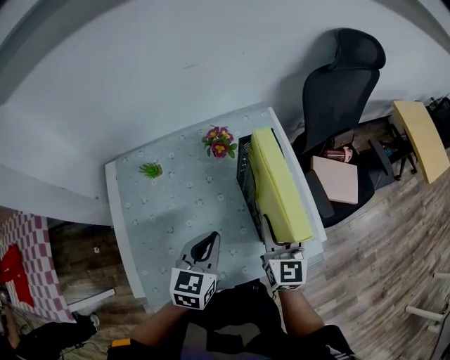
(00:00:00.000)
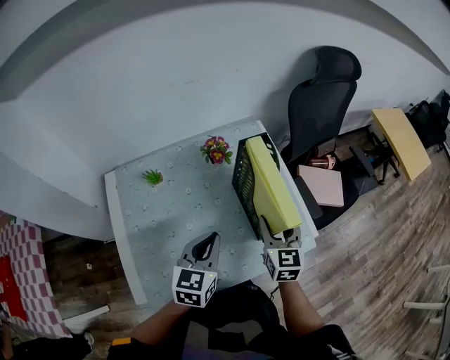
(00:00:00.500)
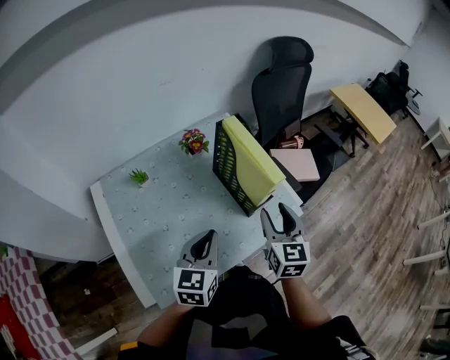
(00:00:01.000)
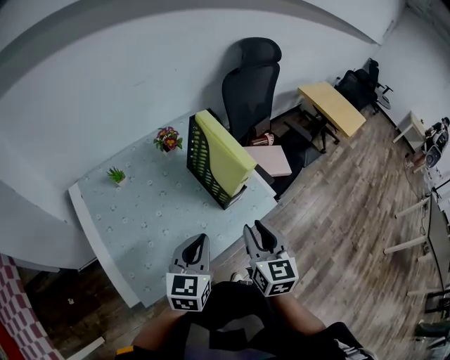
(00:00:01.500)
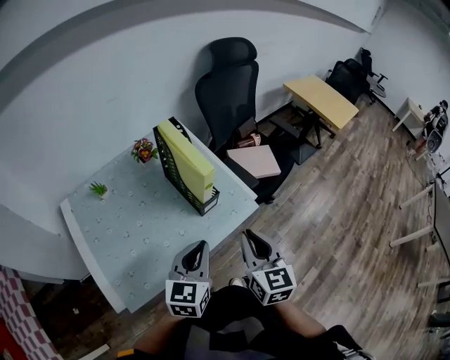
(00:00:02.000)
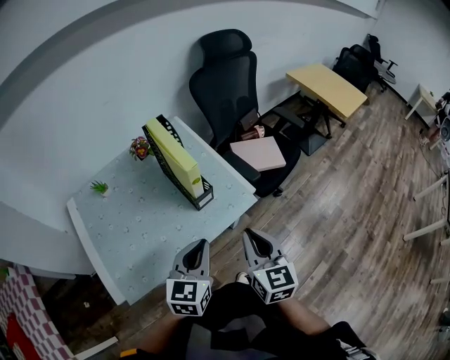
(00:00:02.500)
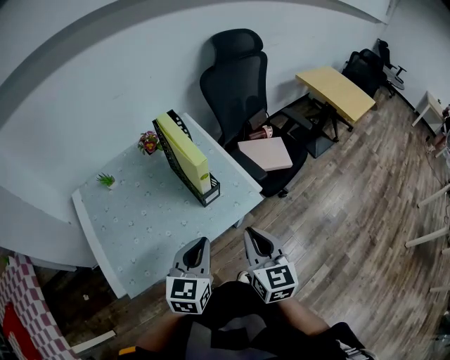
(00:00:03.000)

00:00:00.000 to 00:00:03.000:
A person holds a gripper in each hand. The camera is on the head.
00:00:00.000 to 00:00:01.500: The grippers both shift backward by approximately 20 cm. The left gripper swivels about 20 degrees.
00:00:01.500 to 00:00:03.000: The two grippers go some 15 cm to the right. The right gripper closes.

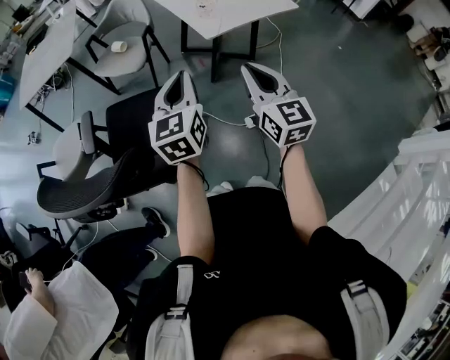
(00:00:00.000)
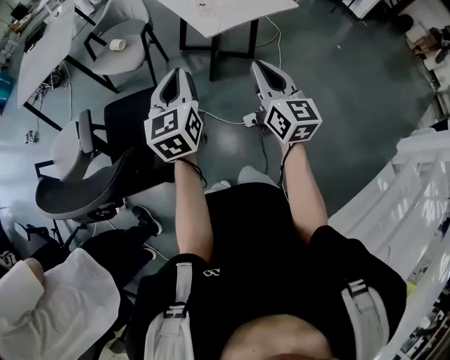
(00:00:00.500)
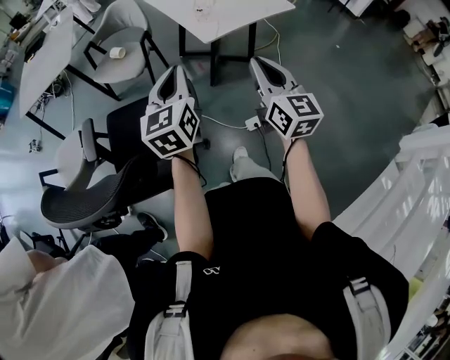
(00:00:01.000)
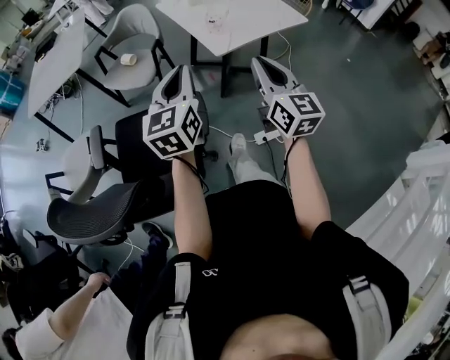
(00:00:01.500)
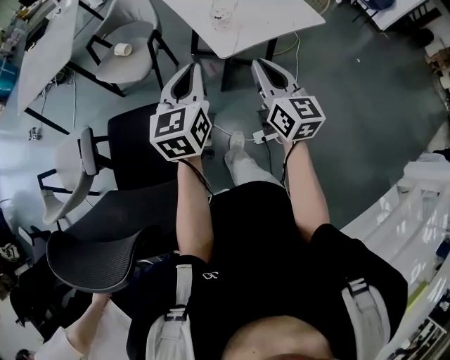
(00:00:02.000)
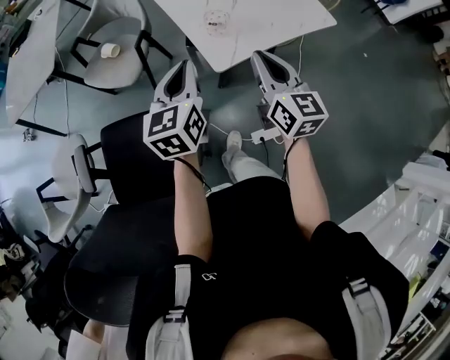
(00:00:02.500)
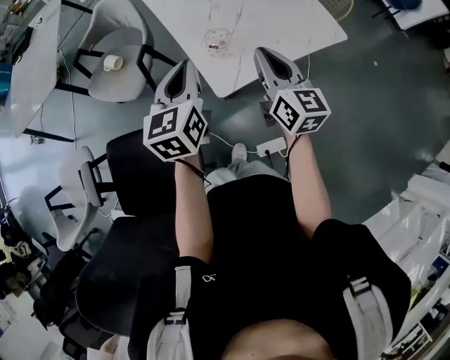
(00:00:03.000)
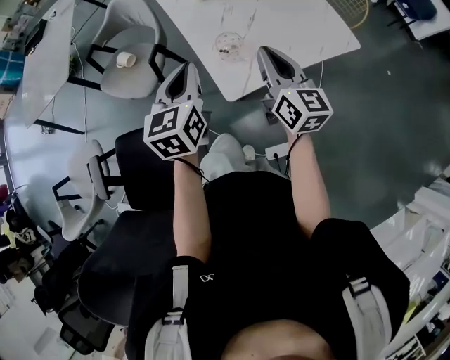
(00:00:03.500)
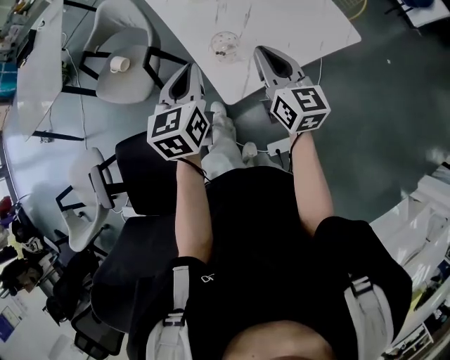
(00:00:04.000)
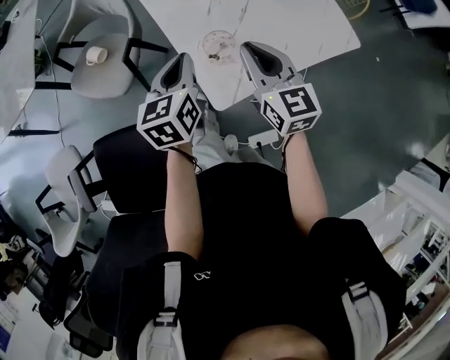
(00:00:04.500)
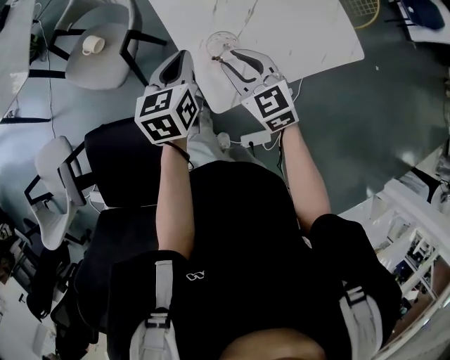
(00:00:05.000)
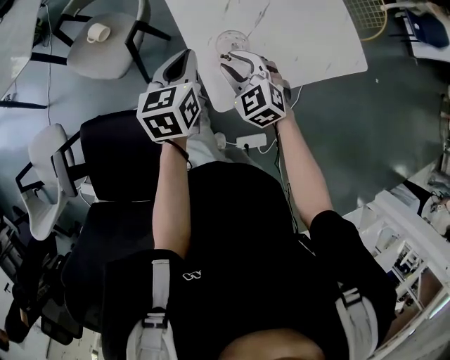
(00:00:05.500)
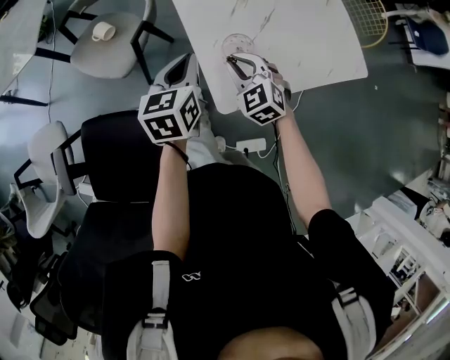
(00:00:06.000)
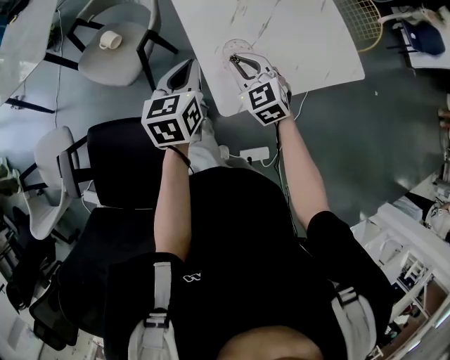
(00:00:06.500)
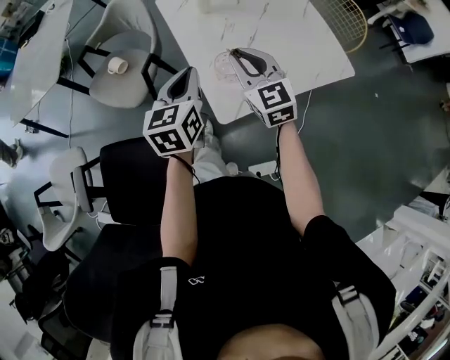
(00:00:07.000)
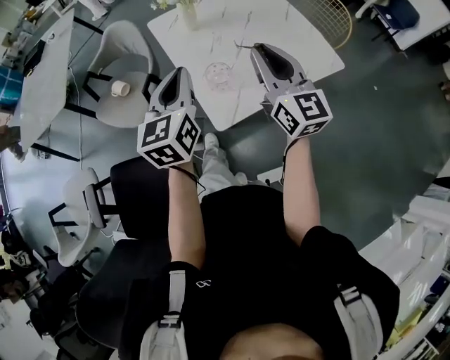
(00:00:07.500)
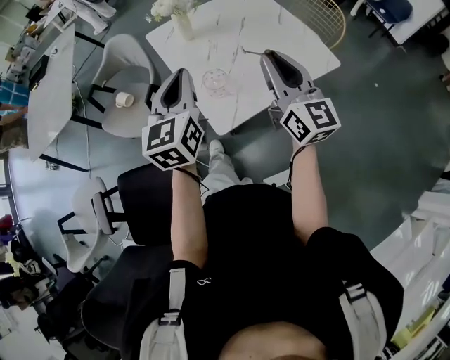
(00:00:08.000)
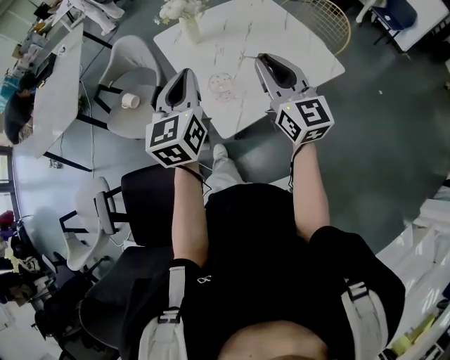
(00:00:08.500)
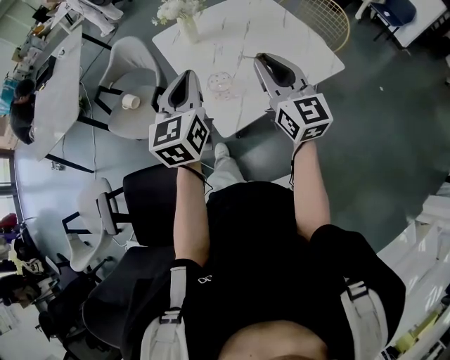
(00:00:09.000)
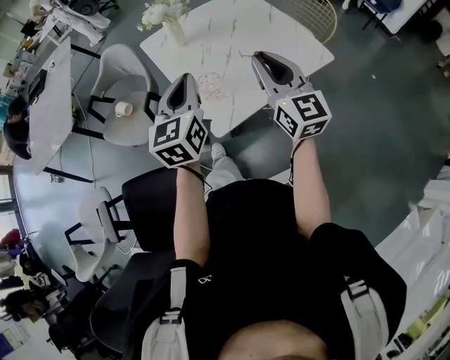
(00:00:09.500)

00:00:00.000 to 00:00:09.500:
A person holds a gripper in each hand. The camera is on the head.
00:00:00.000 to 00:00:02.000: The two grippers go some 20 cm forward.
00:00:02.000 to 00:00:04.000: Both grippers move forward, some 30 cm.
00:00:04.000 to 00:00:05.500: The right gripper shifts some 20 cm downward and to the left, tips its fingers downward by roughly 30 degrees, and opens its fingers, while the left gripper heads downward and forward, covering some 10 cm.
00:00:05.500 to 00:00:07.500: The right gripper shifts roughly 25 cm upward, and tilts its fingers roughly 40 degrees upward. Meanwhile the left gripper goes about 15 cm upward, and changes its angle by about 20 degrees.
00:00:07.500 to 00:00:09.500: The right gripper ends up approximately 5 cm from where it was.

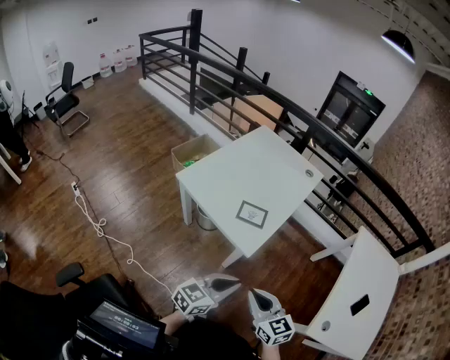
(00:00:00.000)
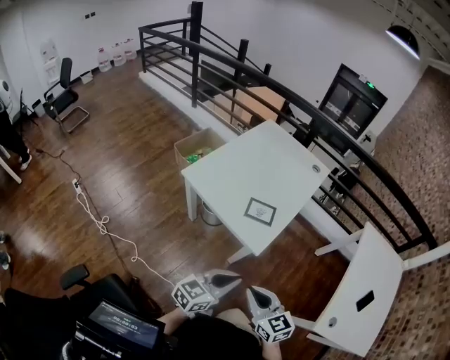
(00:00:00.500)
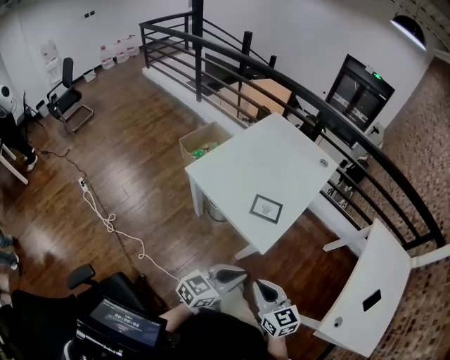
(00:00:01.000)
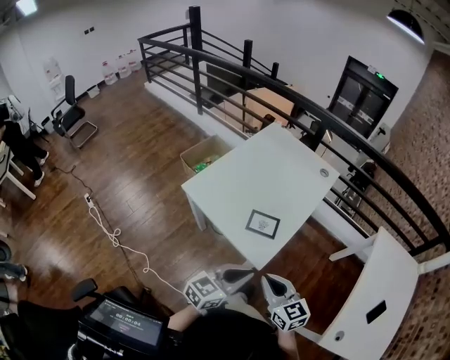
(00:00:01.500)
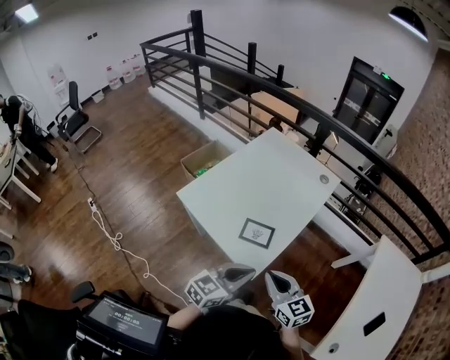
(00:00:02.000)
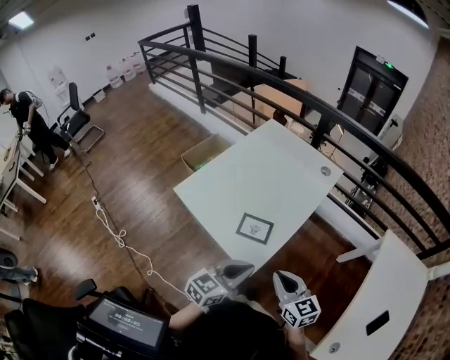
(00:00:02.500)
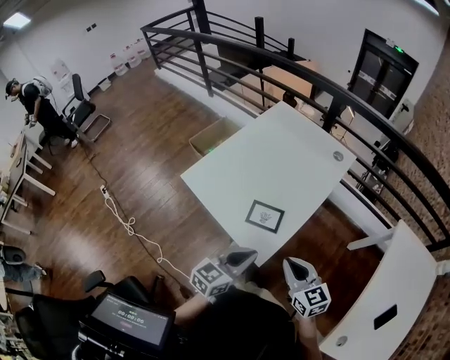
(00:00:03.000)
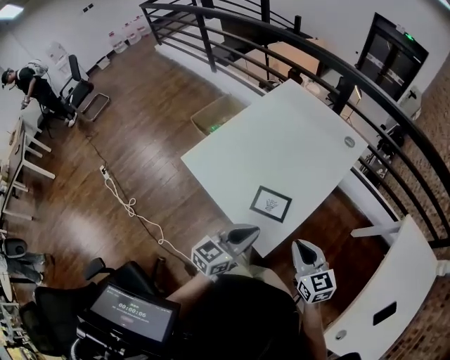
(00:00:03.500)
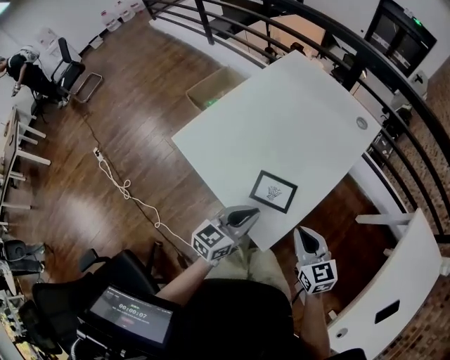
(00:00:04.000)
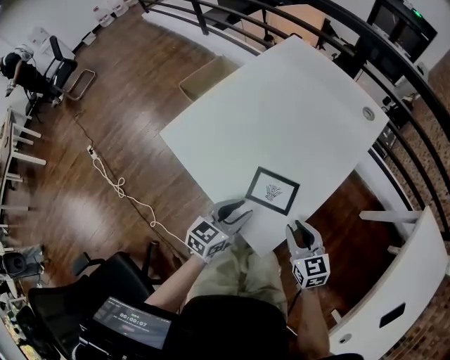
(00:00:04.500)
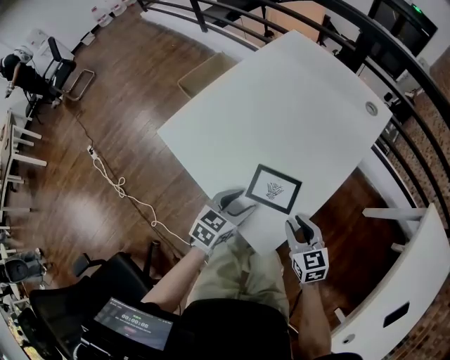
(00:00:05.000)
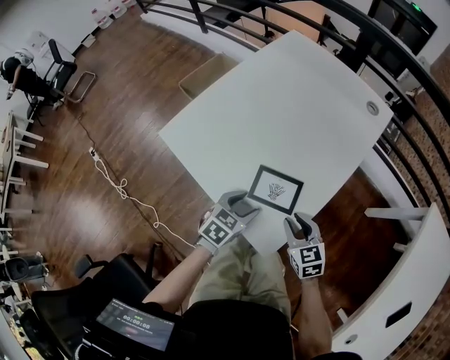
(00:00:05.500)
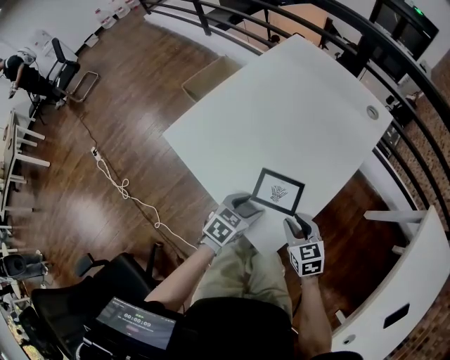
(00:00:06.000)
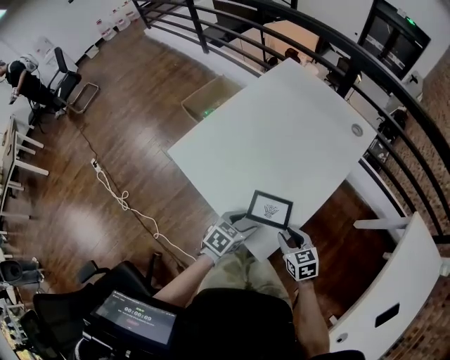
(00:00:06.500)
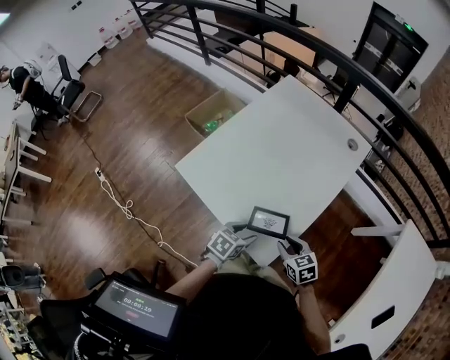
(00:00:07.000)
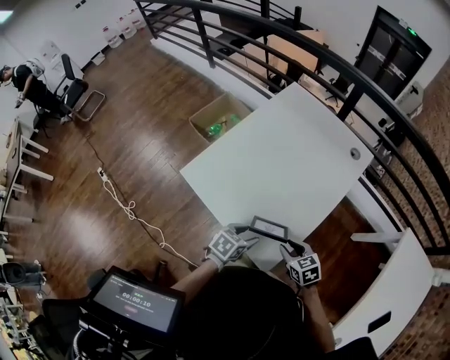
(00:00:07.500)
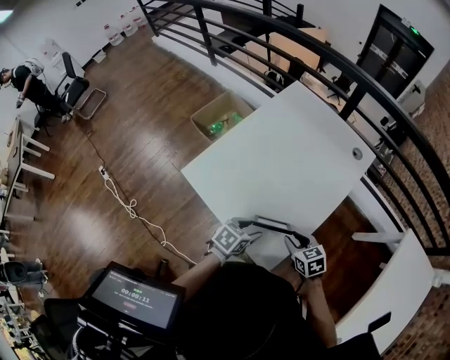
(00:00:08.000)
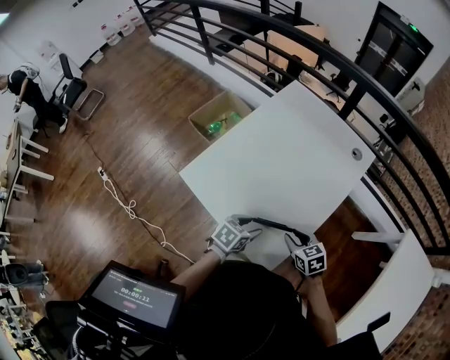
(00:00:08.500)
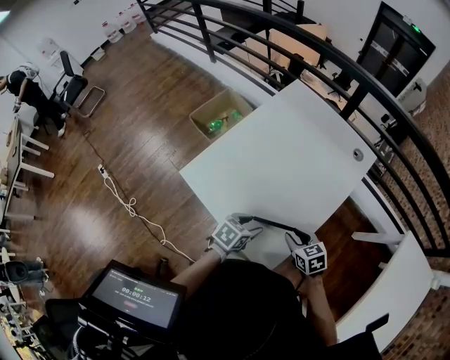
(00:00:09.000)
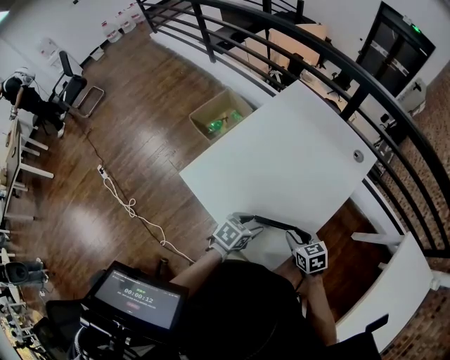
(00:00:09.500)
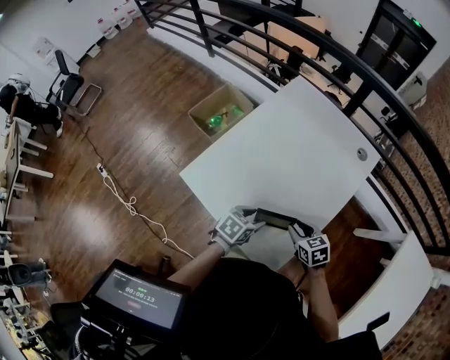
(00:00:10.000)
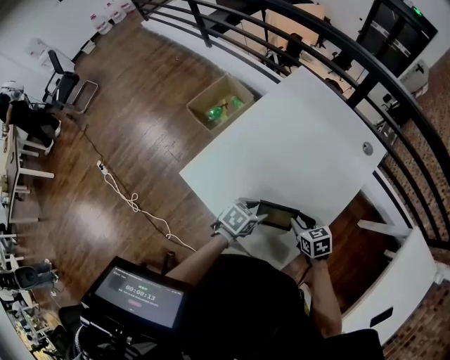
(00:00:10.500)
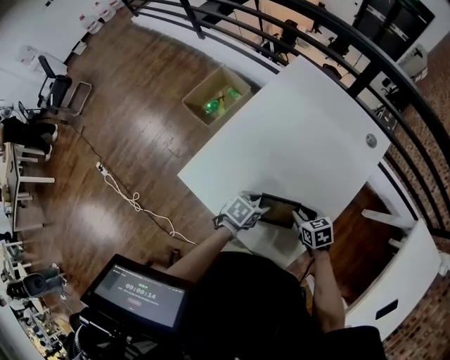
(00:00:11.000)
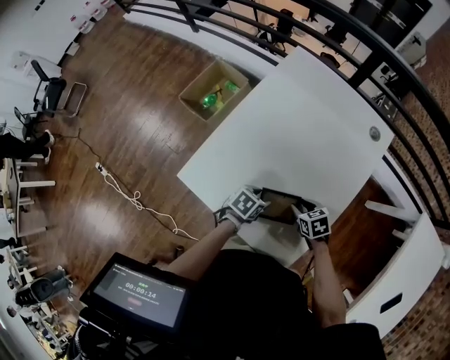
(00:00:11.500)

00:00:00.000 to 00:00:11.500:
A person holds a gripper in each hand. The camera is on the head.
00:00:00.000 to 00:00:02.000: Both grippers move forward, roughly 20 cm.
00:00:02.000 to 00:00:04.000: Both grippers travel together downward and forward, some 20 cm.
00:00:04.000 to 00:00:06.000: Both grippers move downward, some 15 cm. The left gripper turns by about 30 degrees, and opens. The right gripper opens.
00:00:06.000 to 00:00:07.500: Both grippers travel together upward, approximately 10 cm.
00:00:07.500 to 00:00:09.500: Both grippers travel together forward, some 5 cm.
00:00:09.500 to 00:00:11.500: Both grippers move downward, approximately 10 cm.

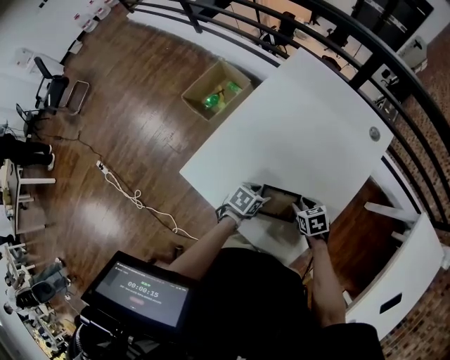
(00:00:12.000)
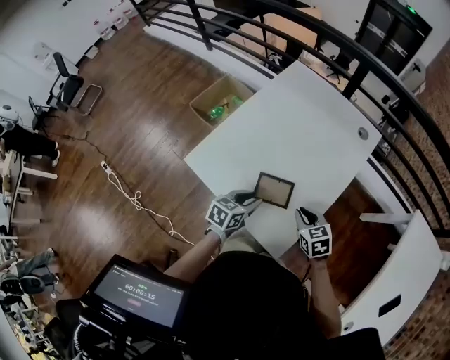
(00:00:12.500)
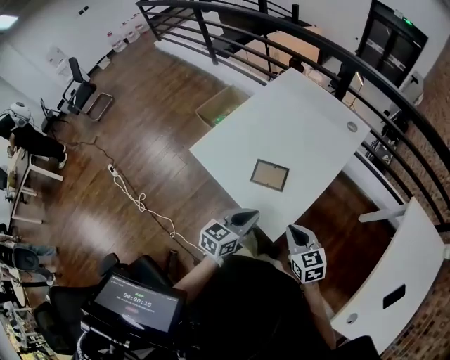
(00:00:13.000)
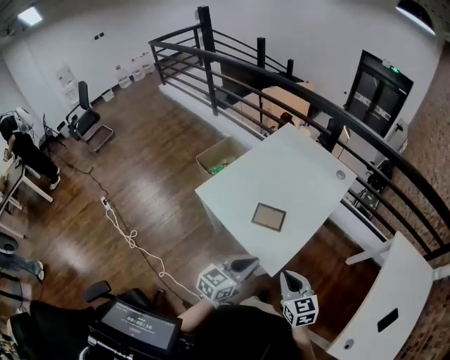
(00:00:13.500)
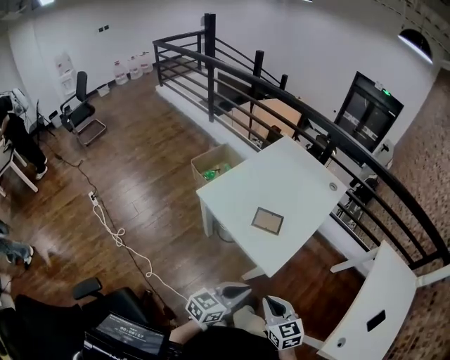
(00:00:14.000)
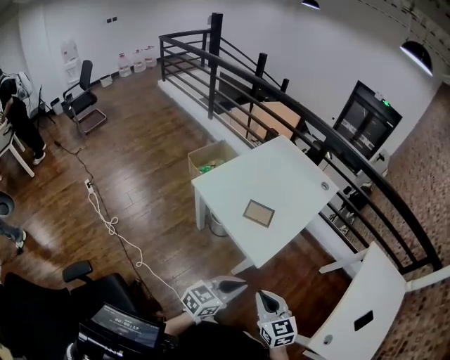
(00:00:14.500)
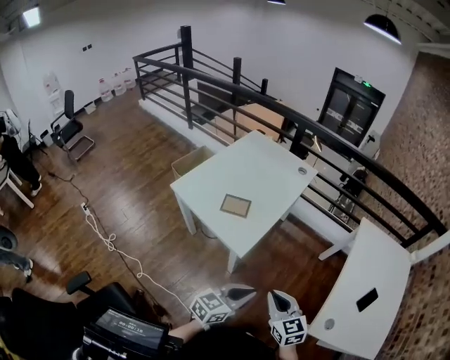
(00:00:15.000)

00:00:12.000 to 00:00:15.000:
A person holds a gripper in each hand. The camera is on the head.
00:00:12.000 to 00:00:13.500: Both grippers travel together backward and upward, some 40 cm. The right gripper tilts its fingers approximately 40 degrees upward, and closes. The left gripper angles its fingers upward, by some 40 degrees, and closes.
00:00:13.500 to 00:00:15.000: The two grippers go some 20 cm backward and to the right.
